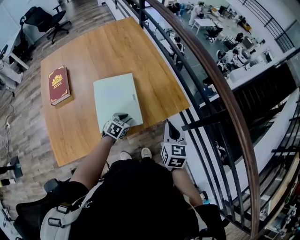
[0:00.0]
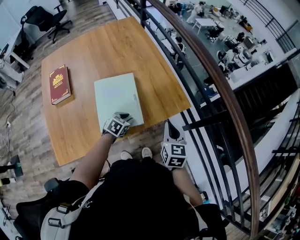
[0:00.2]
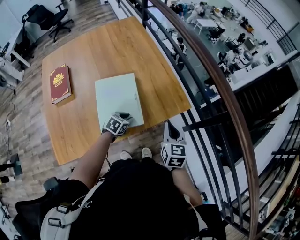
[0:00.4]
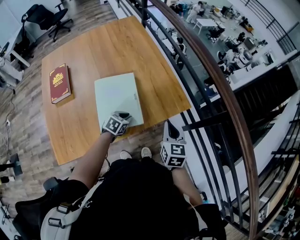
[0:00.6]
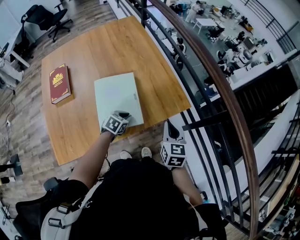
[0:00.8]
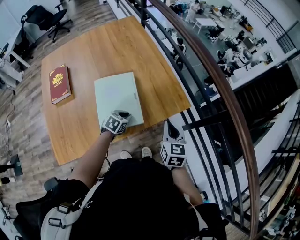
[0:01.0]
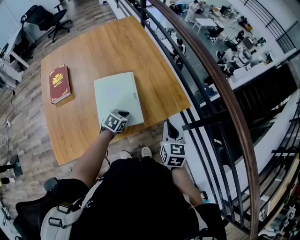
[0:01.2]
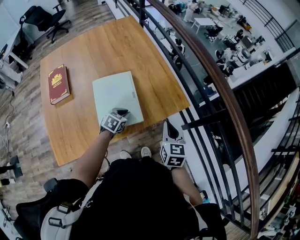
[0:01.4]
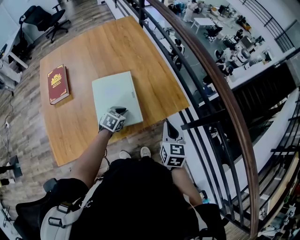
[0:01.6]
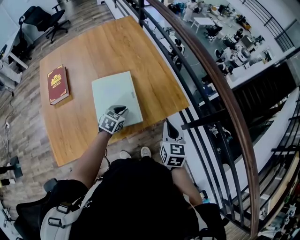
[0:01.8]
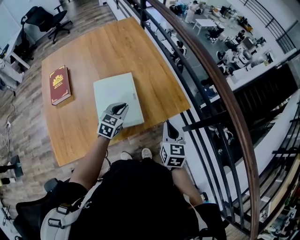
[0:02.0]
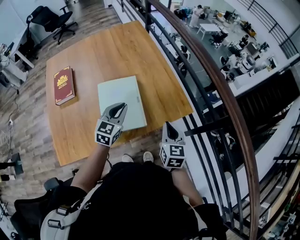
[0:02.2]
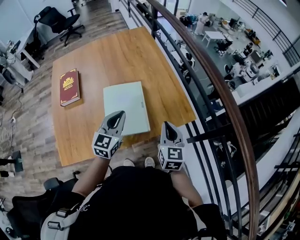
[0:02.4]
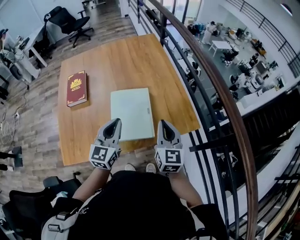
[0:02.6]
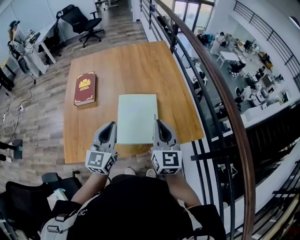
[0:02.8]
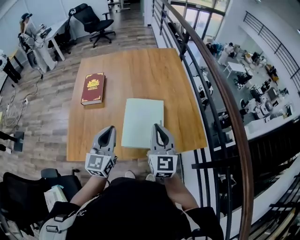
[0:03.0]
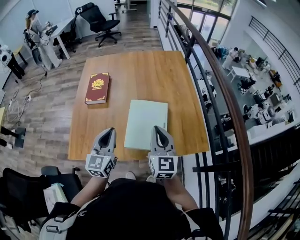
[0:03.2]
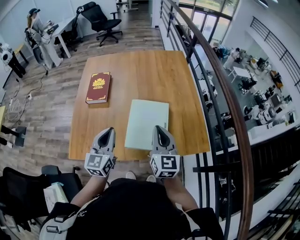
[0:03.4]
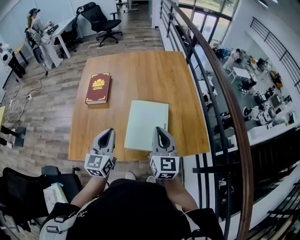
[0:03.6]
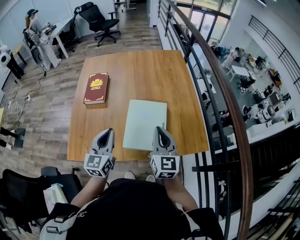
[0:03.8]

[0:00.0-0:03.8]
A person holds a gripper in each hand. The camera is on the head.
0:00.0 to 0:01.2: The left gripper closes its fingers.
0:01.2 to 0:02.6: The left gripper heads upward, covering roughly 25 cm, and tips its fingers upward by approximately 50 degrees. The right gripper goes some 15 cm upward and to the left, and rotates some 20 degrees.
0:02.6 to 0:03.8: Both grippers move to the left, about 10 cm.

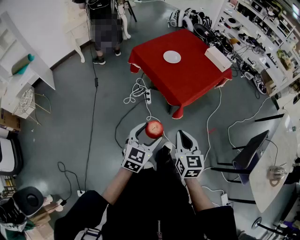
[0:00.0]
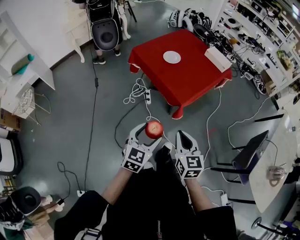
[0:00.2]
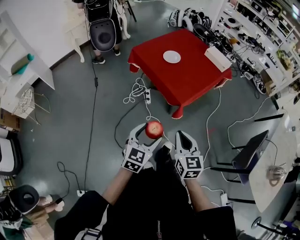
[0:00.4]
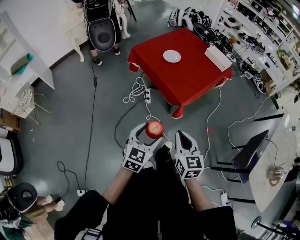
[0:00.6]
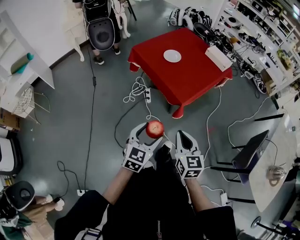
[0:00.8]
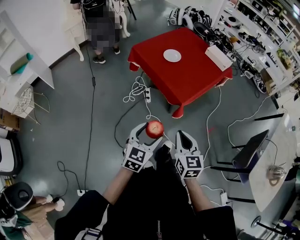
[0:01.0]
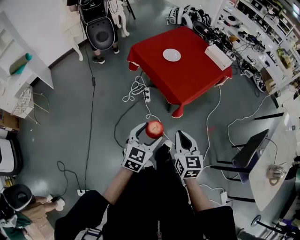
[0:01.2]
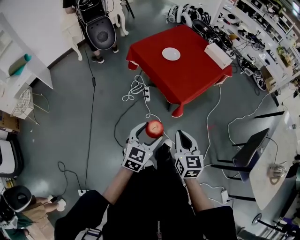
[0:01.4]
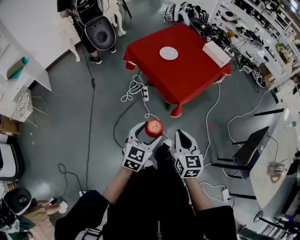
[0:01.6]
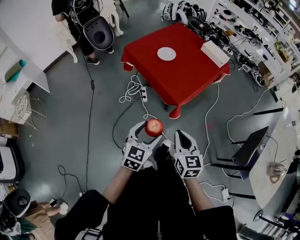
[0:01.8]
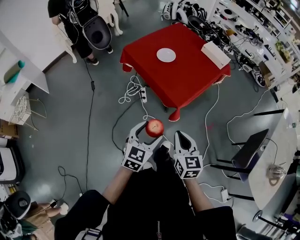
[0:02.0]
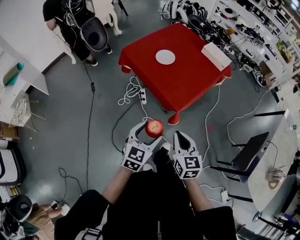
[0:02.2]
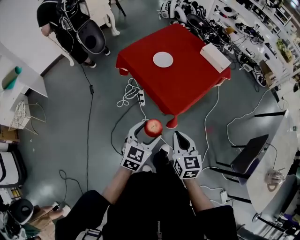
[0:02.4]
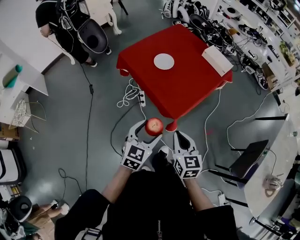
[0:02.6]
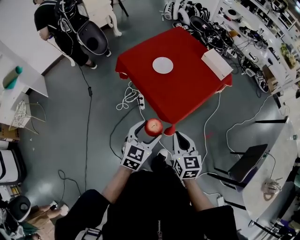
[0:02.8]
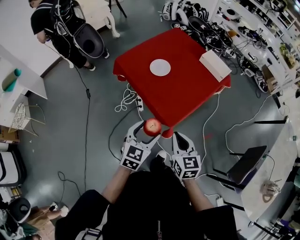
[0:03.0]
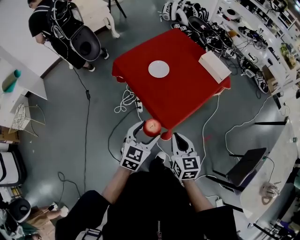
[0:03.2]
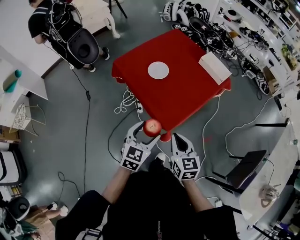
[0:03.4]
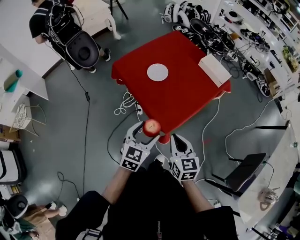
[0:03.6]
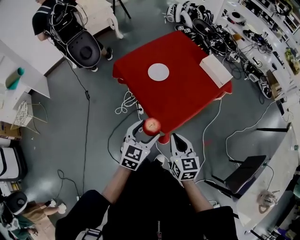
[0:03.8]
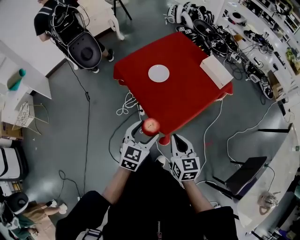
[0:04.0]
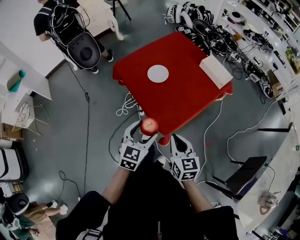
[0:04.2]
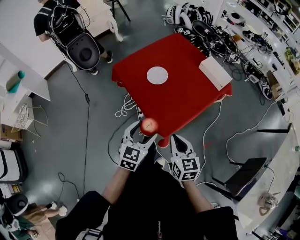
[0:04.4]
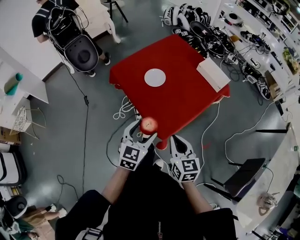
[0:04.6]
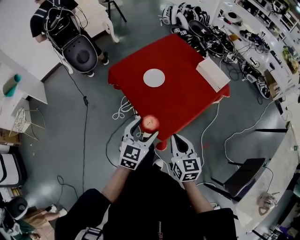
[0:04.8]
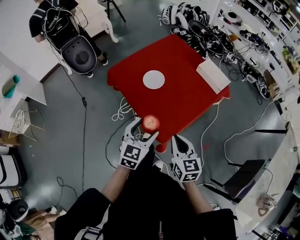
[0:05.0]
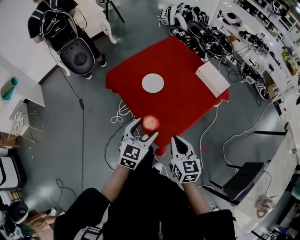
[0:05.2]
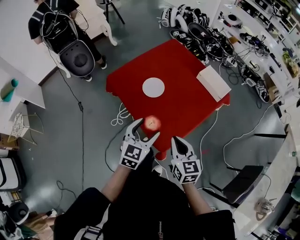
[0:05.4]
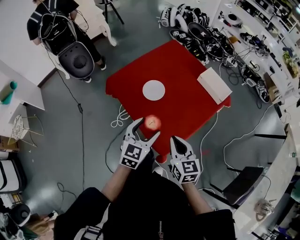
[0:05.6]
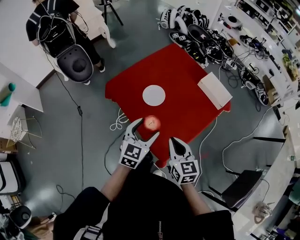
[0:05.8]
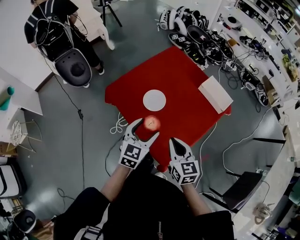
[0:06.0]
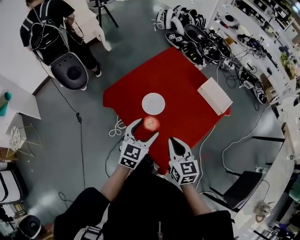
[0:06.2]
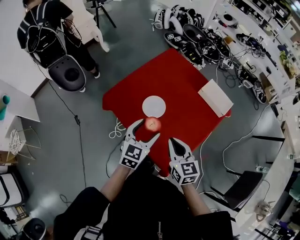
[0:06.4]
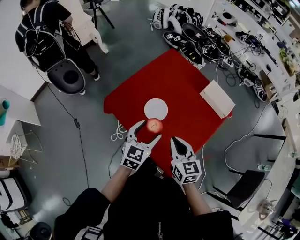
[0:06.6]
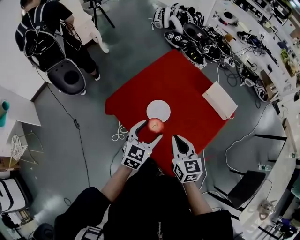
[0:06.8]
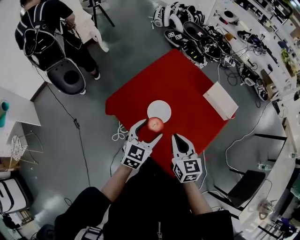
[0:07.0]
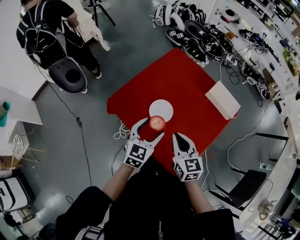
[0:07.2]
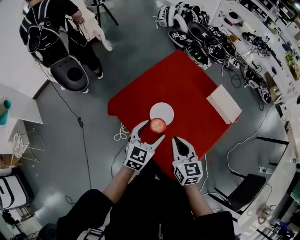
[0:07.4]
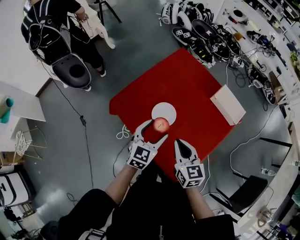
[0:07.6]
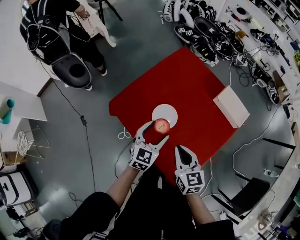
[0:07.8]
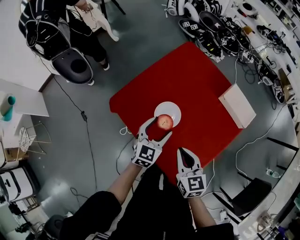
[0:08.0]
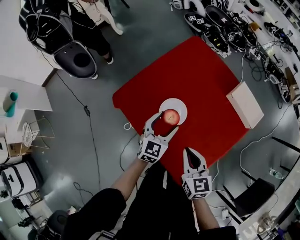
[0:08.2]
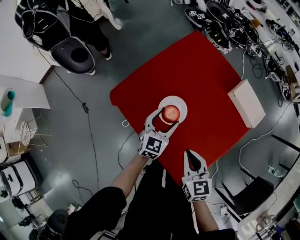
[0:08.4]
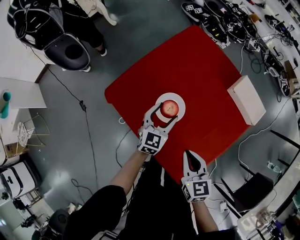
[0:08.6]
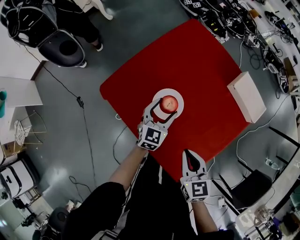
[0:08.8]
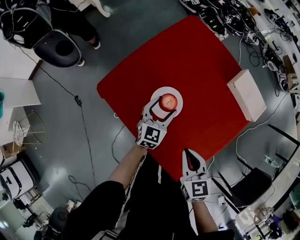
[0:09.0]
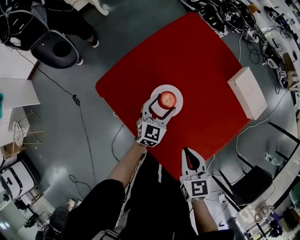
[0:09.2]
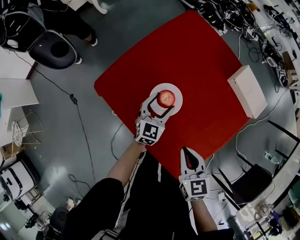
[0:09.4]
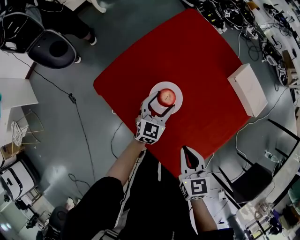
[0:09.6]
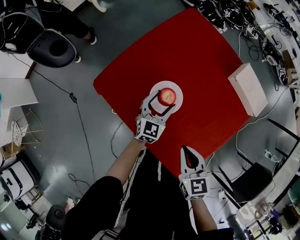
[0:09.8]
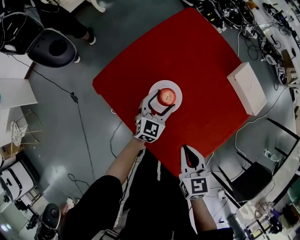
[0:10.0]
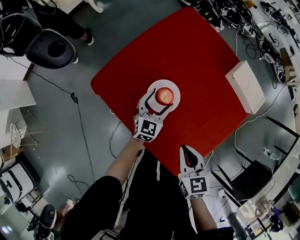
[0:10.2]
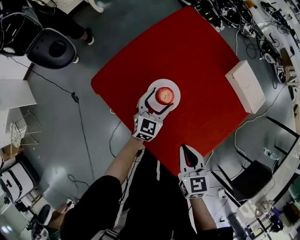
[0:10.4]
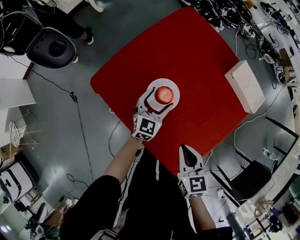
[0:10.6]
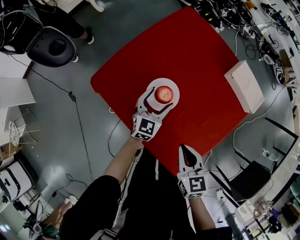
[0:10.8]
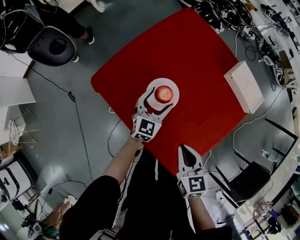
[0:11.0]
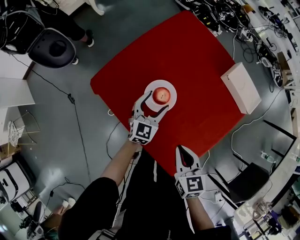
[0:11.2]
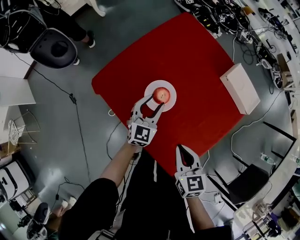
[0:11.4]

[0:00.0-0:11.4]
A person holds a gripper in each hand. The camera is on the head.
0:00.0 to 0:01.4: The grippers stay close to where they were, moving slightly.
0:01.4 to 0:02.8: The grippers both shift forward by approximately 20 cm.
0:02.8 to 0:04.2: The grippers both shift forward by approximately 5 cm.
0:04.2 to 0:05.6: The grippers both shift forward by about 15 cm.
0:05.6 to 0:07.2: The right gripper is displaced forward and to the left by about 20 cm, while the left gripper travels forward by roughly 15 cm.
0:07.2 to 0:08.6: The right gripper travels downward by approximately 10 cm, while the left gripper travels downward and forward by roughly 20 cm.
0:08.6 to 0:10.0: The left gripper goes approximately 5 cm downward.
0:10.0 to 0:11.4: The left gripper heads upward, covering about 5 cm.

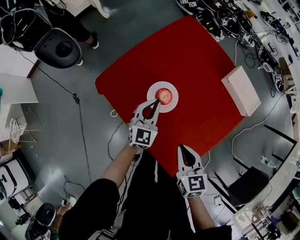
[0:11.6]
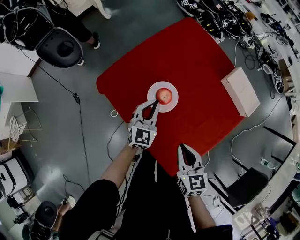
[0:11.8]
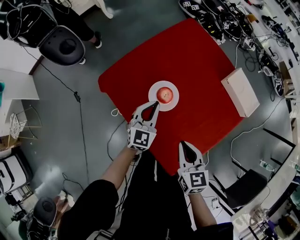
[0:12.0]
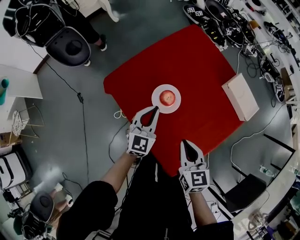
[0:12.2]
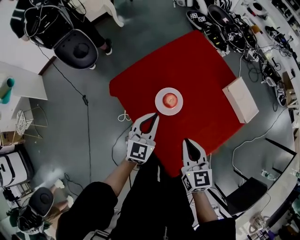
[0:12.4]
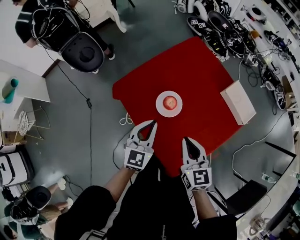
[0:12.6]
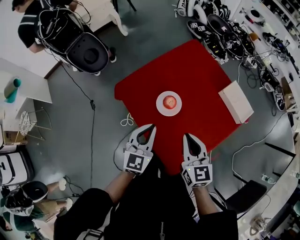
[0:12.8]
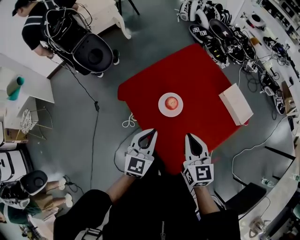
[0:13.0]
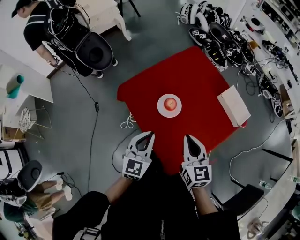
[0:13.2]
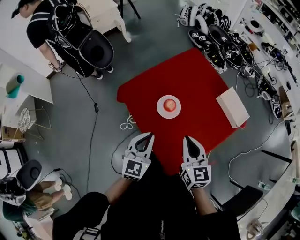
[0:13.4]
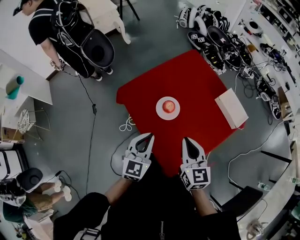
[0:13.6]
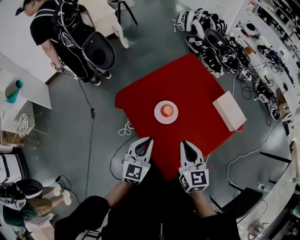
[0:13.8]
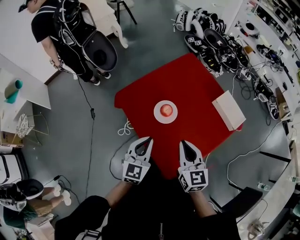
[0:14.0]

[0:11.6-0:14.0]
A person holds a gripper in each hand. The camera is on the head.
0:11.6 to 0:12.8: The left gripper goes some 20 cm upward and backward. The right gripper is displaced upward by some 10 cm.
0:12.8 to 0:14.0: The grippers move only a little.

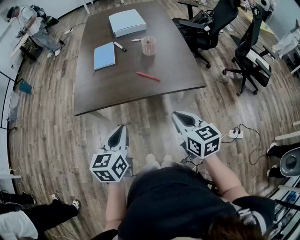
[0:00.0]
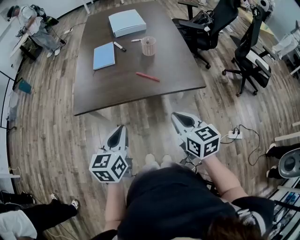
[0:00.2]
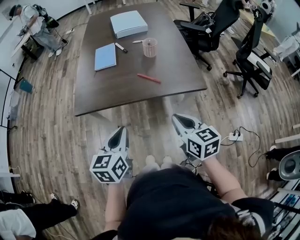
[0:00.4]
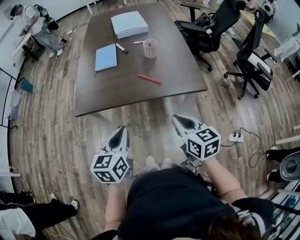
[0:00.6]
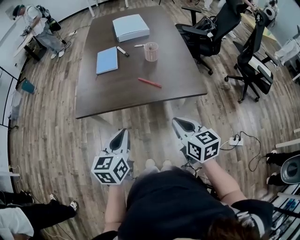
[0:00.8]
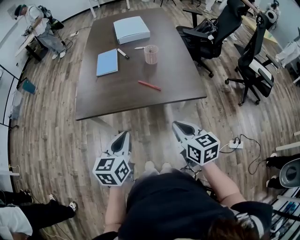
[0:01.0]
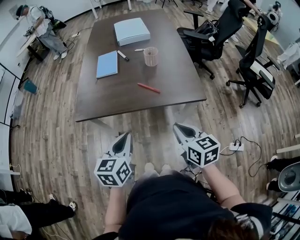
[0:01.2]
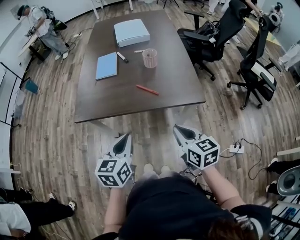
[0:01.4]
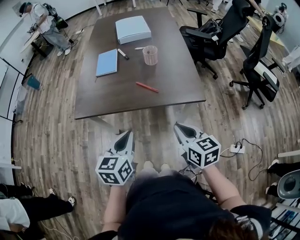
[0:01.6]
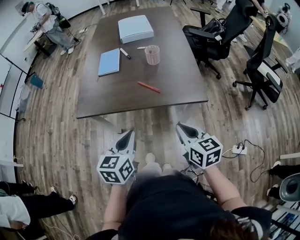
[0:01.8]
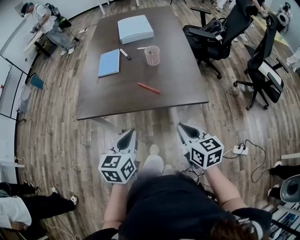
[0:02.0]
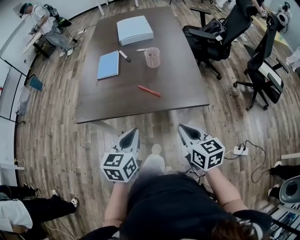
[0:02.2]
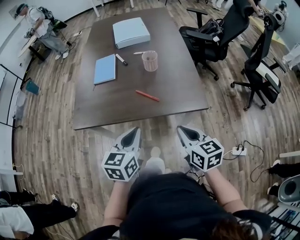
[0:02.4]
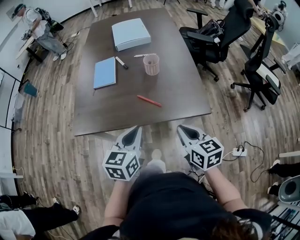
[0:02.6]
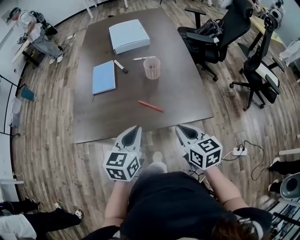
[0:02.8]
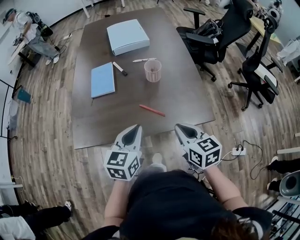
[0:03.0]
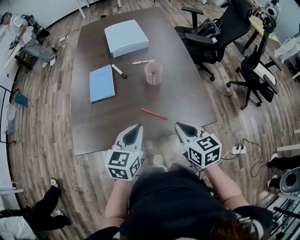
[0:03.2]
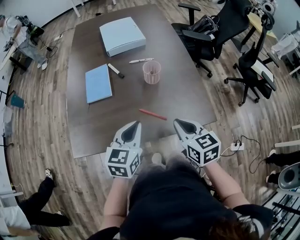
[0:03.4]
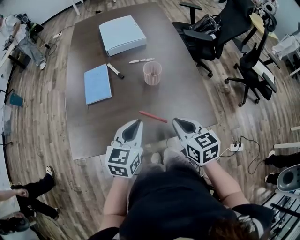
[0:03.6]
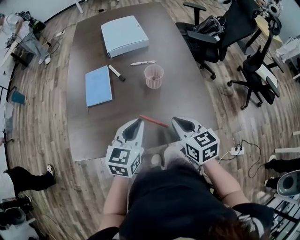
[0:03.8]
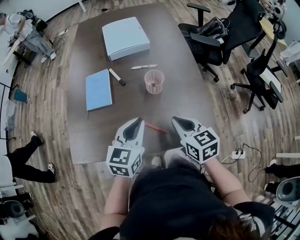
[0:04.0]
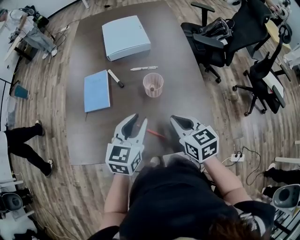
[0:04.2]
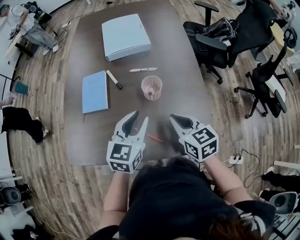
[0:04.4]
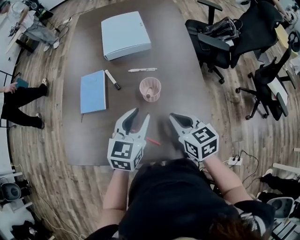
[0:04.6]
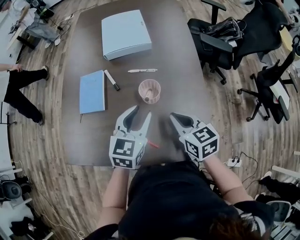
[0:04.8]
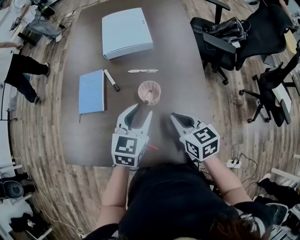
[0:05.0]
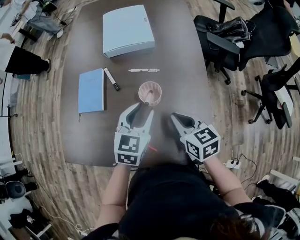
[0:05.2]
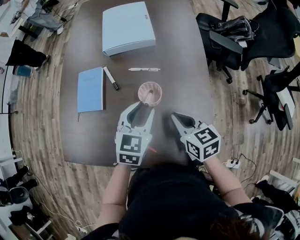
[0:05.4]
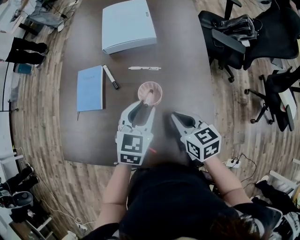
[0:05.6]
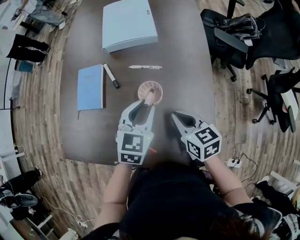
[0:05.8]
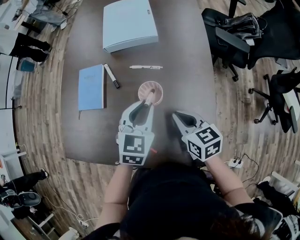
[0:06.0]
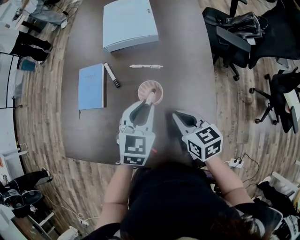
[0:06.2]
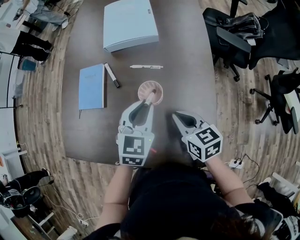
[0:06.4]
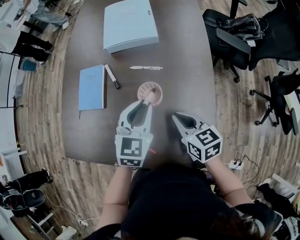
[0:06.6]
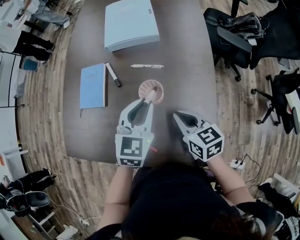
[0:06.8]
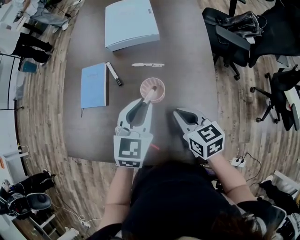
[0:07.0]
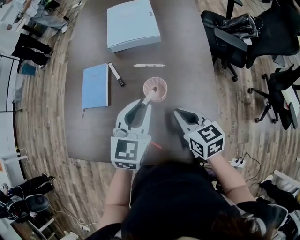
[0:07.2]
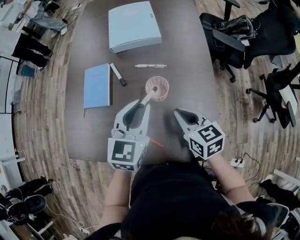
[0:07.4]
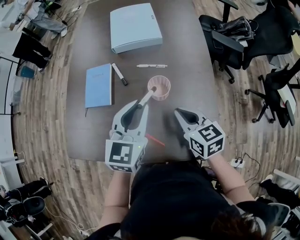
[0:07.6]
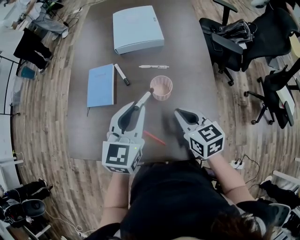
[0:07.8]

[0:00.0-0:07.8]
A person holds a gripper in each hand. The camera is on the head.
0:00.0 to 0:01.6: Both grippers move to the right, roughly 5 cm.
0:01.6 to 0:03.2: Both grippers move forward, approximately 20 cm.
0:03.2 to 0:04.6: The left gripper moves forward and to the right, roughly 20 cm, and opens up. The right gripper heads forward, covering roughly 20 cm.
0:04.6 to 0:06.2: The right gripper travels forward and downward by some 10 cm. Meanwhile the left gripper is displaced forward by approximately 5 cm.
0:06.2 to 0:07.8: The left gripper shifts some 10 cm upward and to the left. The right gripper ends up roughly 5 cm from where it was.
